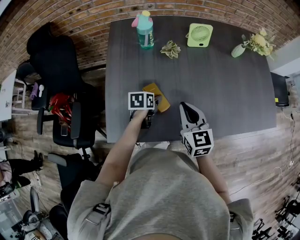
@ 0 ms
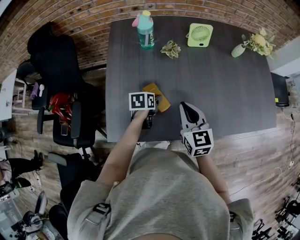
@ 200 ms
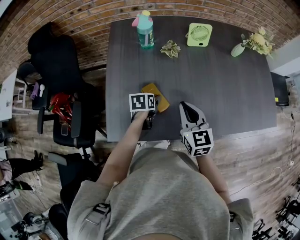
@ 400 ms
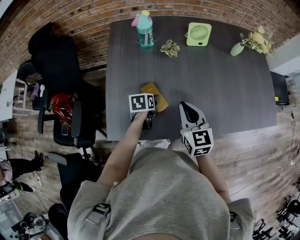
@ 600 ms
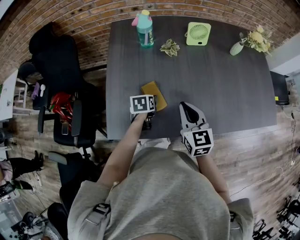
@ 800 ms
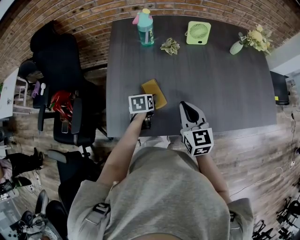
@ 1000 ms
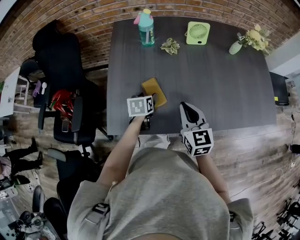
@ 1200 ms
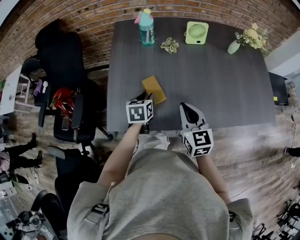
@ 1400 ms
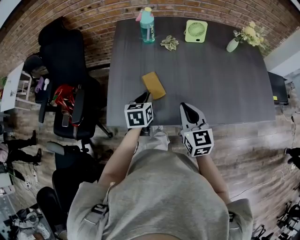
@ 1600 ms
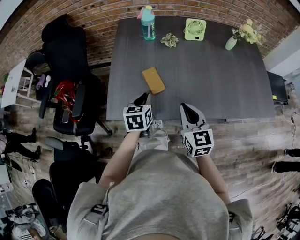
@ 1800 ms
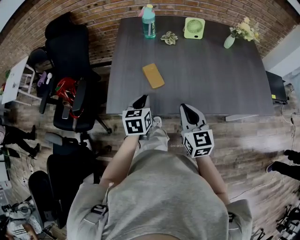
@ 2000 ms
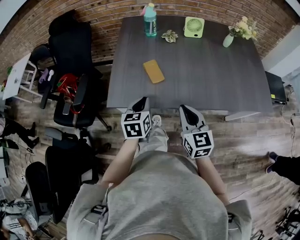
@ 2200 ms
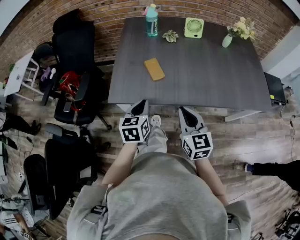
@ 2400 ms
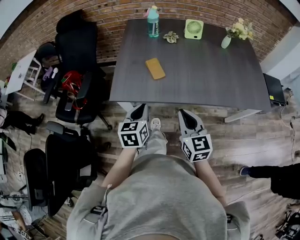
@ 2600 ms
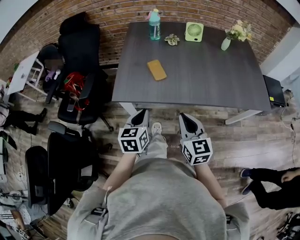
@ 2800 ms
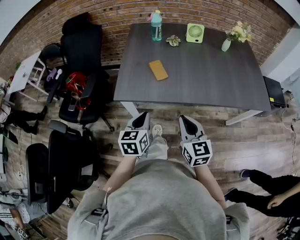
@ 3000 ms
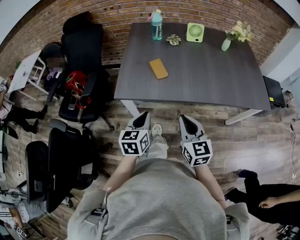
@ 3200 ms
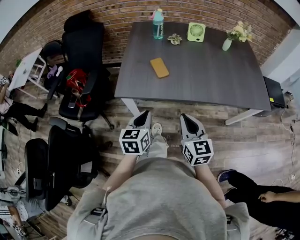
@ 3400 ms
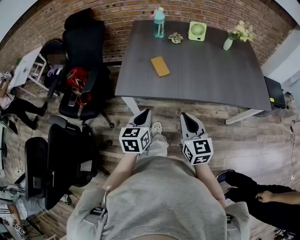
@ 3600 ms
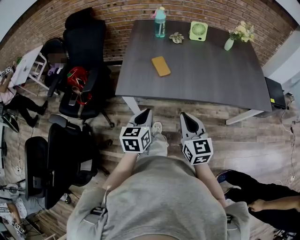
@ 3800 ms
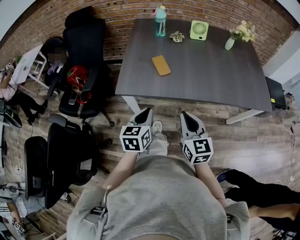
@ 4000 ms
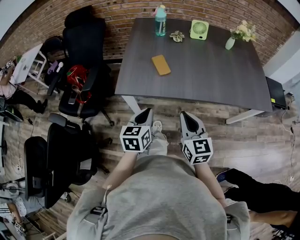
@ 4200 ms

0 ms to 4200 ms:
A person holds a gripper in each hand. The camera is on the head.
0 ms to 1400 ms: The right gripper travels backward by about 5 cm, while the left gripper goes approximately 10 cm upward and backward, and rotates some 20 degrees.
1400 ms to 2800 ms: Both grippers move backward, about 25 cm. The left gripper closes up.
2800 ms to 4200 ms: The grippers move only a little.

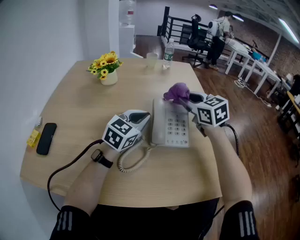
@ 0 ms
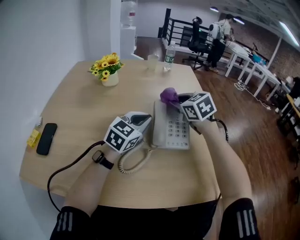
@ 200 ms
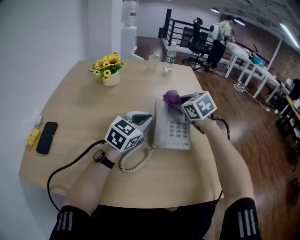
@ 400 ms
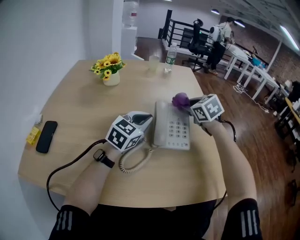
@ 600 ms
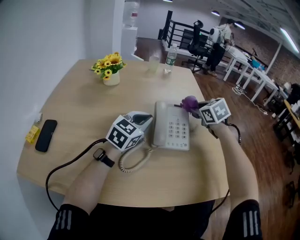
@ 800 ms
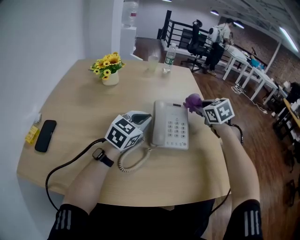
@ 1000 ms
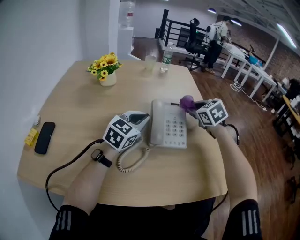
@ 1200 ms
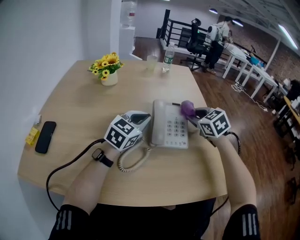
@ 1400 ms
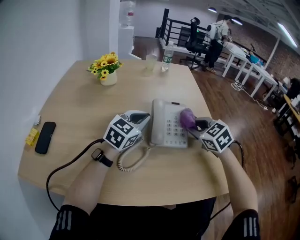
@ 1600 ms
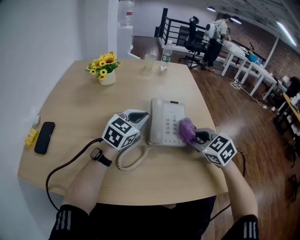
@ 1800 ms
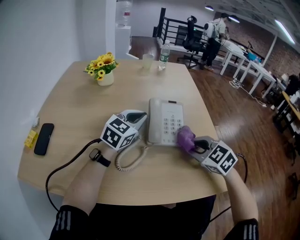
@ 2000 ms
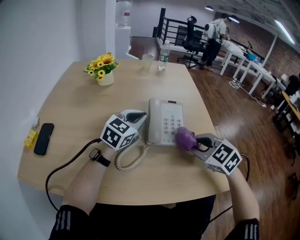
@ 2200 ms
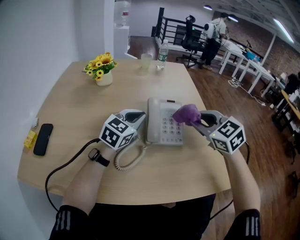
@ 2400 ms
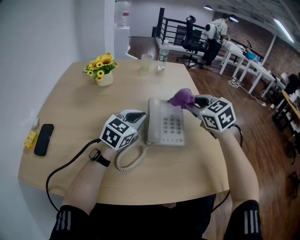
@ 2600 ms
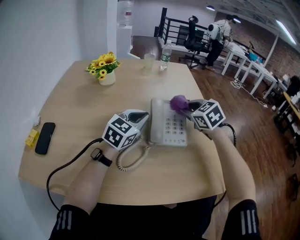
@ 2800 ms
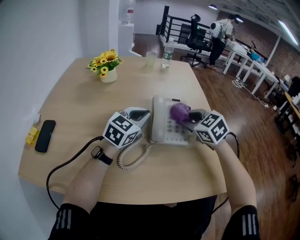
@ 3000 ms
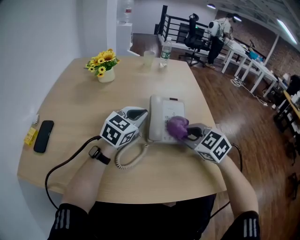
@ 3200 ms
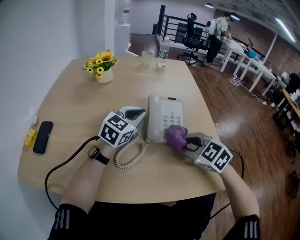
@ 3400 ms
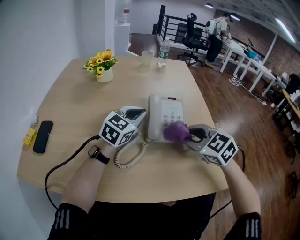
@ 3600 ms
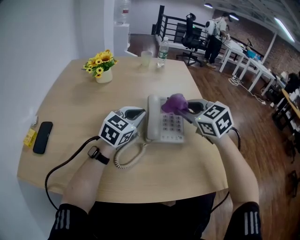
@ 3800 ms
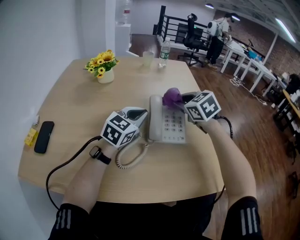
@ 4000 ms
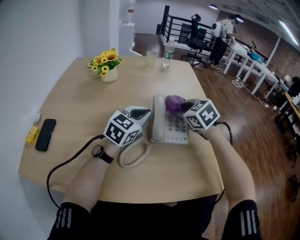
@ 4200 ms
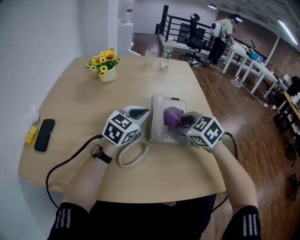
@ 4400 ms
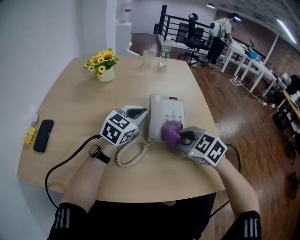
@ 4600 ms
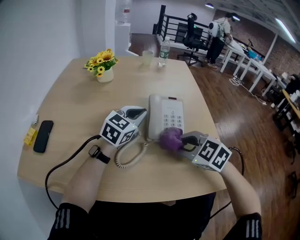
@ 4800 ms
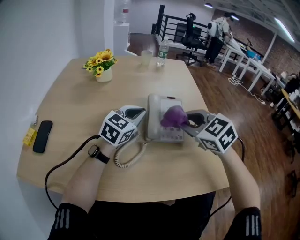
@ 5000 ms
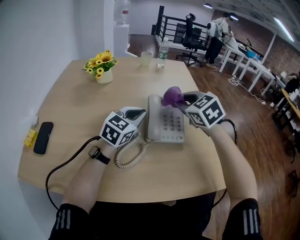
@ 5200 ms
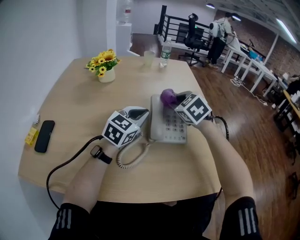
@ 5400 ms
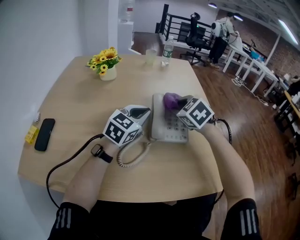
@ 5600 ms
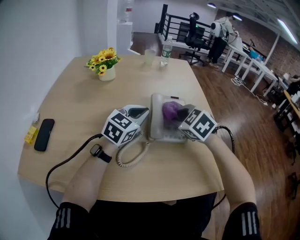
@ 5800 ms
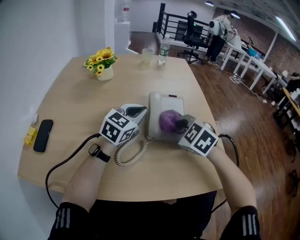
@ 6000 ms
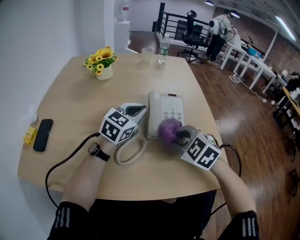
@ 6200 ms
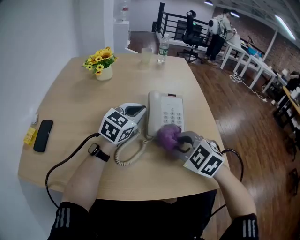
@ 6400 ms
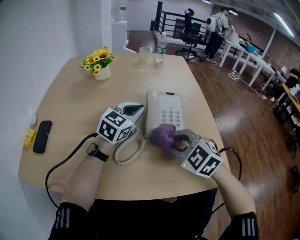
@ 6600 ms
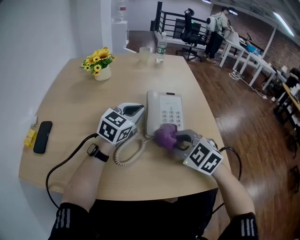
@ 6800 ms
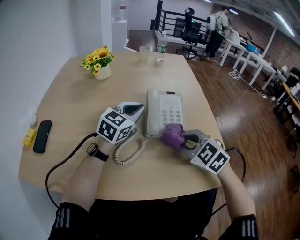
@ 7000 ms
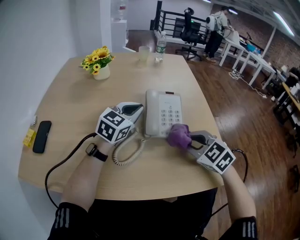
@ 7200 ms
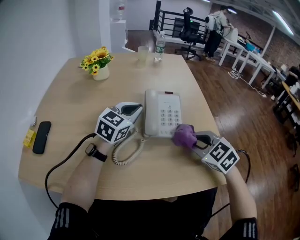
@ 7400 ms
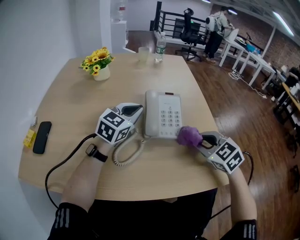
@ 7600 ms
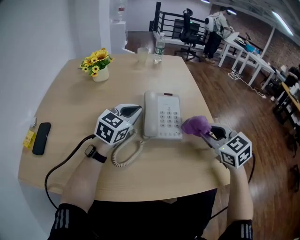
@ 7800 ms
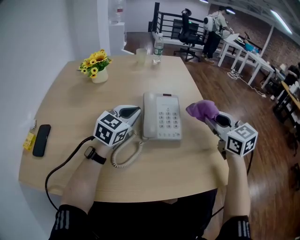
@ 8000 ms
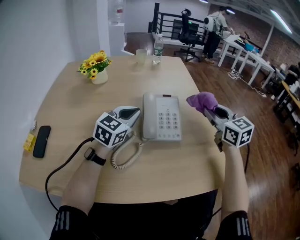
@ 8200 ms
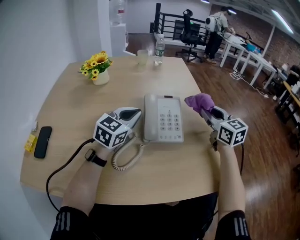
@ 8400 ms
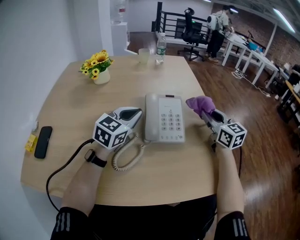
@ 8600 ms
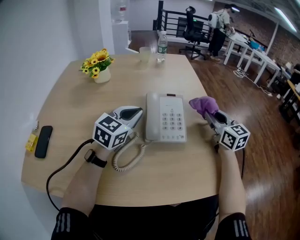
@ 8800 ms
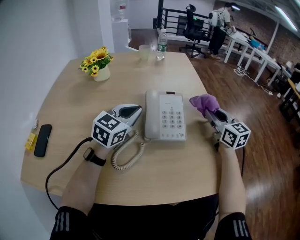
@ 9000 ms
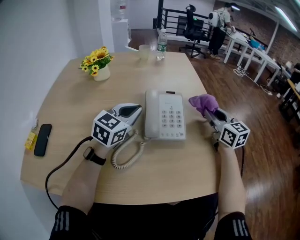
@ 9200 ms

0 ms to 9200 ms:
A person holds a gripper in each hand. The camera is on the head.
0 ms to 1600 ms: The right gripper shifts some 10 cm downward, backward and to the right, and turns by roughly 20 degrees.
1600 ms to 3000 ms: The right gripper moves forward and backward over roughly 15 cm, changing direction 2 times.
3000 ms to 4600 ms: The right gripper moves forward and backward over approximately 15 cm, changing direction 2 times.
4600 ms to 6200 ms: The right gripper moves about 15 cm forward and comes back.
6200 ms to 7600 ms: The right gripper shifts roughly 10 cm to the right.
7600 ms to 9200 ms: The right gripper moves forward, roughly 15 cm, and tips its fingers upward by roughly 30 degrees.

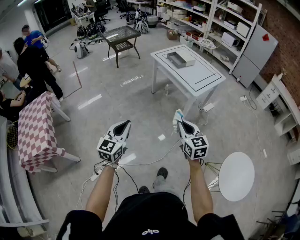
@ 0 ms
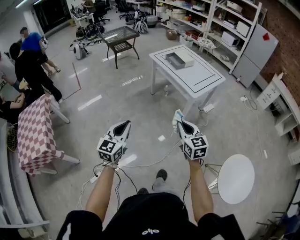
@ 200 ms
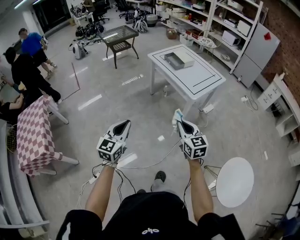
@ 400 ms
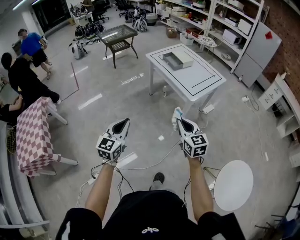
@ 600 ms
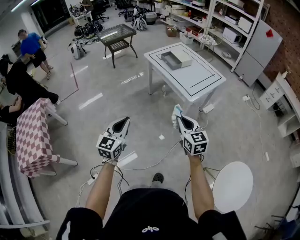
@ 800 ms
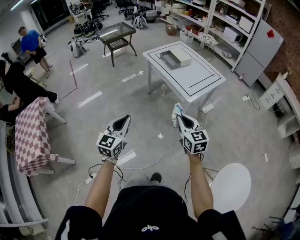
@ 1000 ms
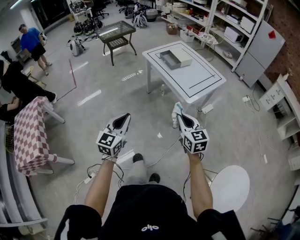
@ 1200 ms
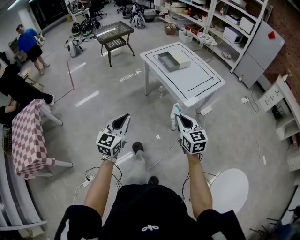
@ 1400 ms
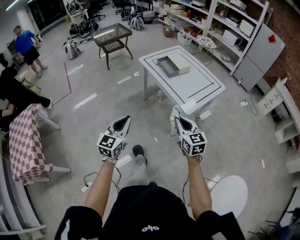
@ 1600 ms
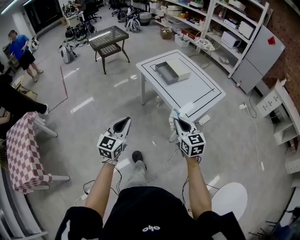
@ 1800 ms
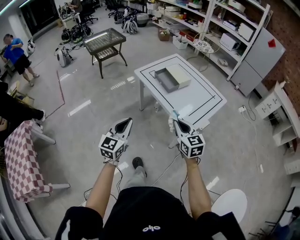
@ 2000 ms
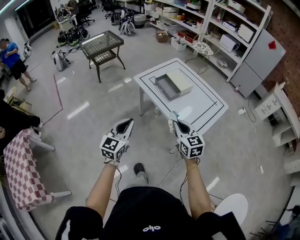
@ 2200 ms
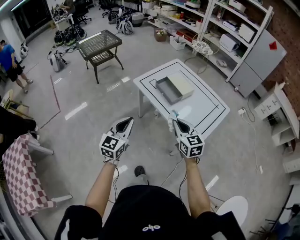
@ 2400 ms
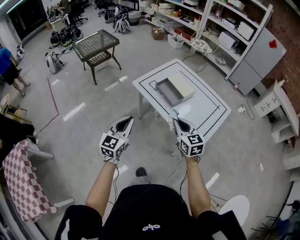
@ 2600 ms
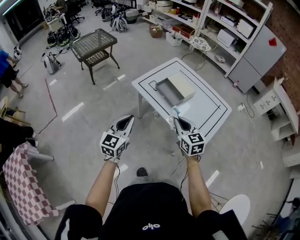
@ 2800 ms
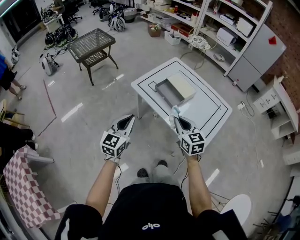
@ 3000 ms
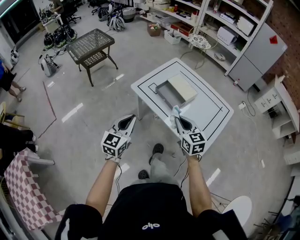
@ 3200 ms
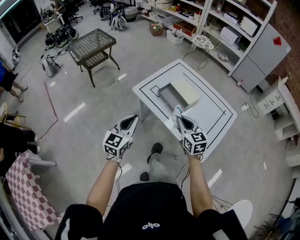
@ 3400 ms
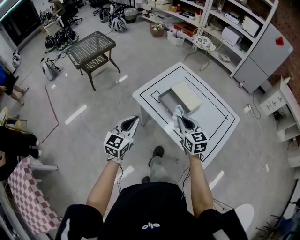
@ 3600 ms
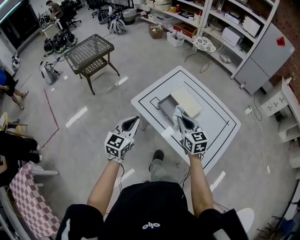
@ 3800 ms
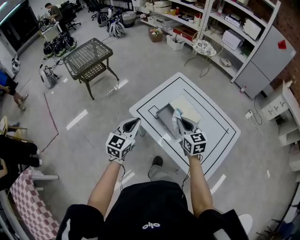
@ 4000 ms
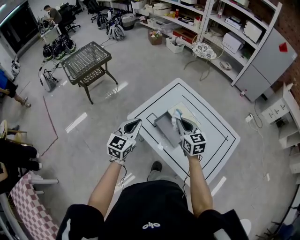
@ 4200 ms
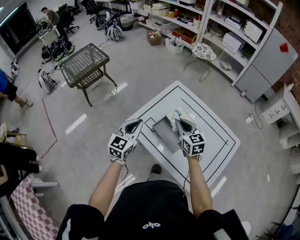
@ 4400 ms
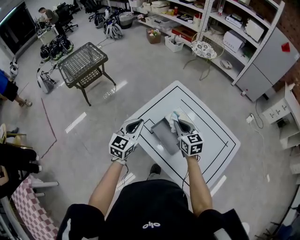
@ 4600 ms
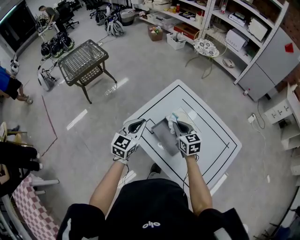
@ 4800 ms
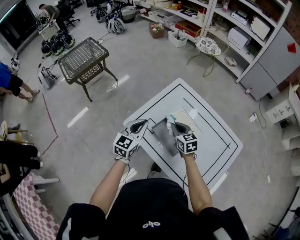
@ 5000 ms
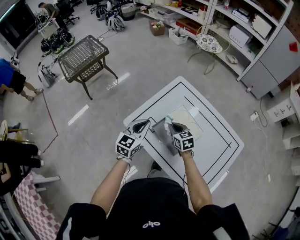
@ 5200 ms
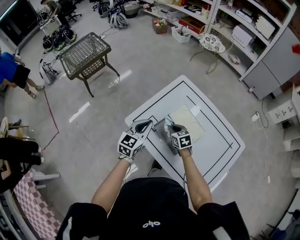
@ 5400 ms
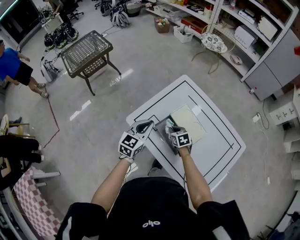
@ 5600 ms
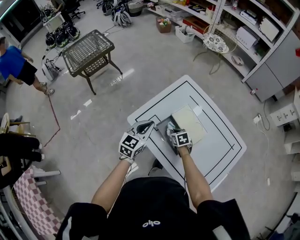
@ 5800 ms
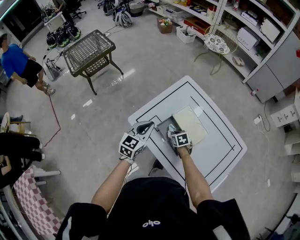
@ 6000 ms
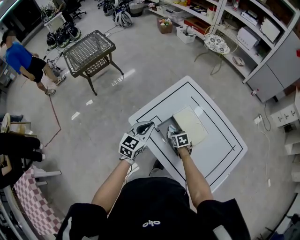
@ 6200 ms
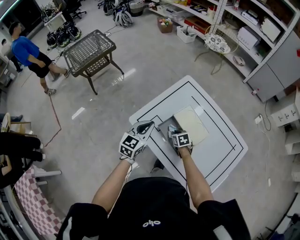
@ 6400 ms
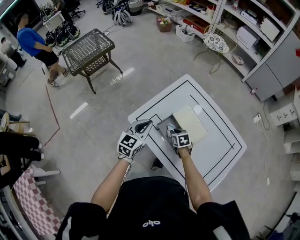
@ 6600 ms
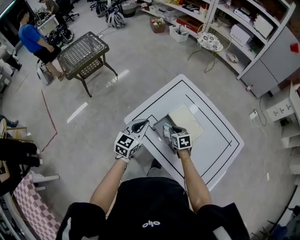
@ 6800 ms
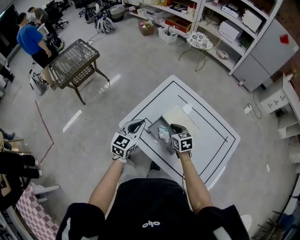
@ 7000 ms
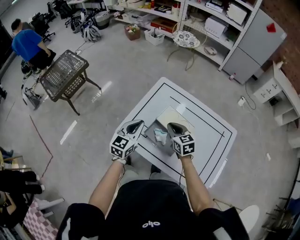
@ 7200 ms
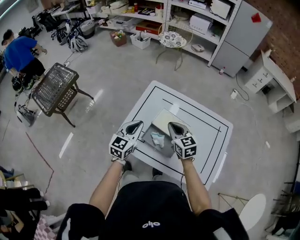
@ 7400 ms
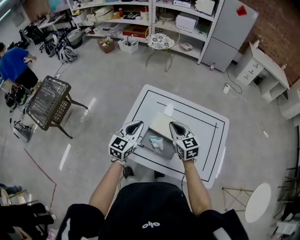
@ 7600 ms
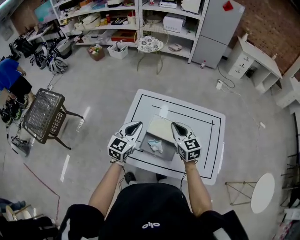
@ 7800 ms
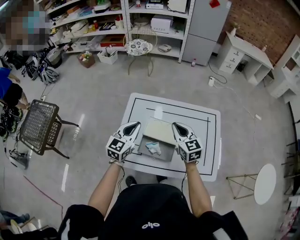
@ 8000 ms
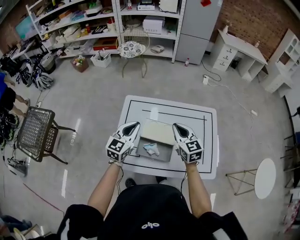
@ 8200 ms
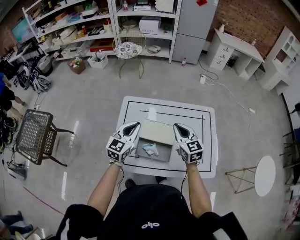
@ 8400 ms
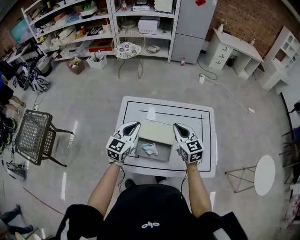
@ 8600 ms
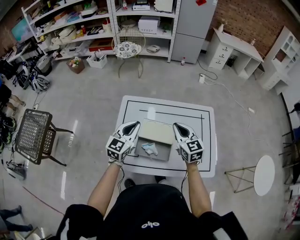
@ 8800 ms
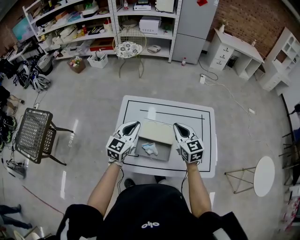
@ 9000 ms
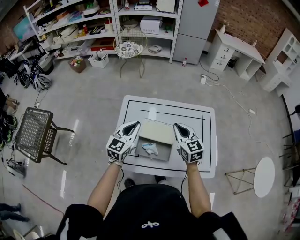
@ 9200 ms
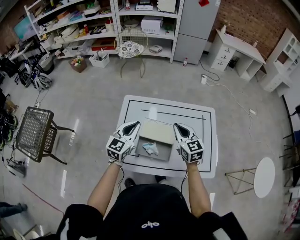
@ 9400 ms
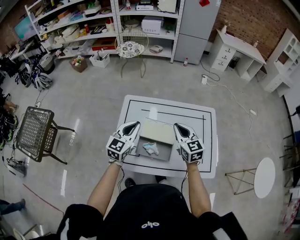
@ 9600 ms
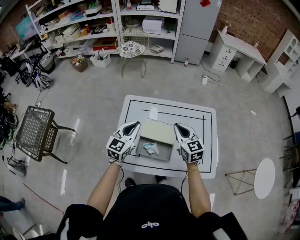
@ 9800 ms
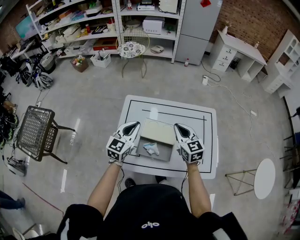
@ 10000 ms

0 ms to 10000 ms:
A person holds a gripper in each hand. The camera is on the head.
0 ms to 1400 ms: Both grippers move forward and to the right, some 25 cm.
1400 ms to 2800 ms: The two grippers travel together, forward, about 50 cm.
2800 ms to 4200 ms: The two grippers go about 35 cm forward.
4200 ms to 5800 ms: The left gripper shifts approximately 15 cm forward, downward and to the right; the right gripper heads downward, covering roughly 25 cm, and tips its fingers downward by some 40 degrees.
5800 ms to 7200 ms: The right gripper travels upward by roughly 20 cm, and swivels about 30 degrees.
7200 ms to 8600 ms: The left gripper ends up some 15 cm from where it was, and swivels roughly 30 degrees, while the right gripper ends up roughly 15 cm from where it was, and rotates approximately 30 degrees.
8600 ms to 10000 ms: Neither gripper changes place.
